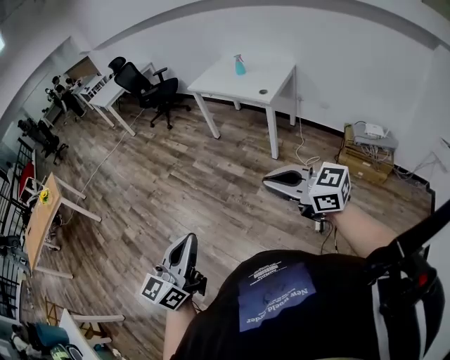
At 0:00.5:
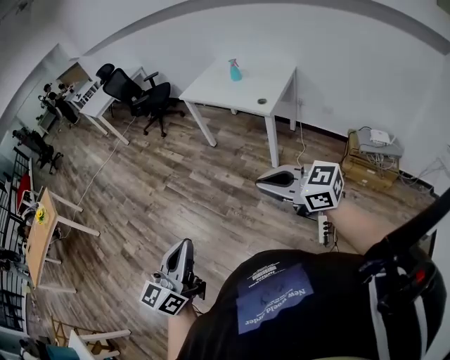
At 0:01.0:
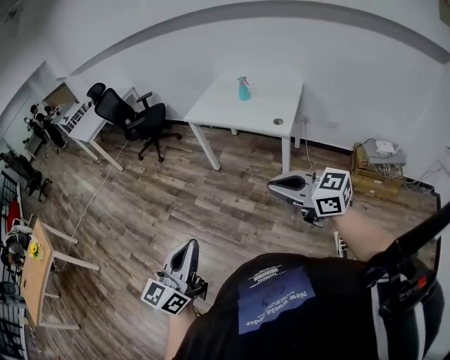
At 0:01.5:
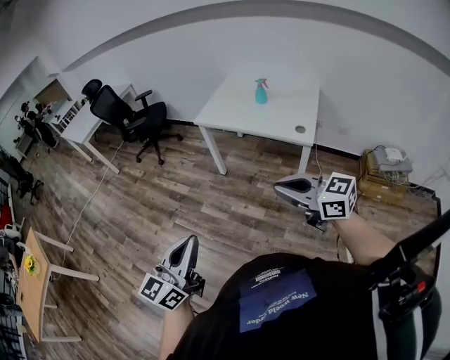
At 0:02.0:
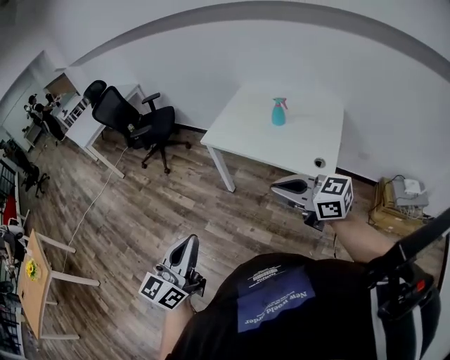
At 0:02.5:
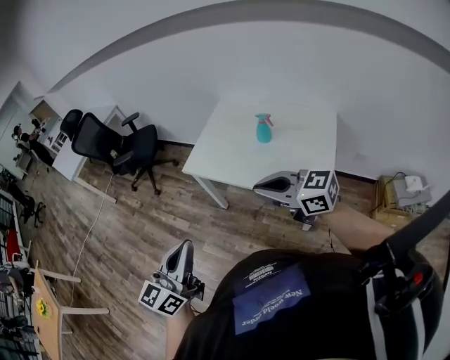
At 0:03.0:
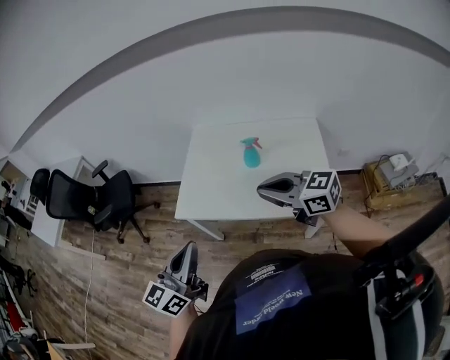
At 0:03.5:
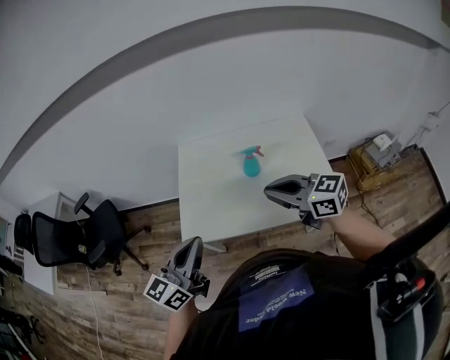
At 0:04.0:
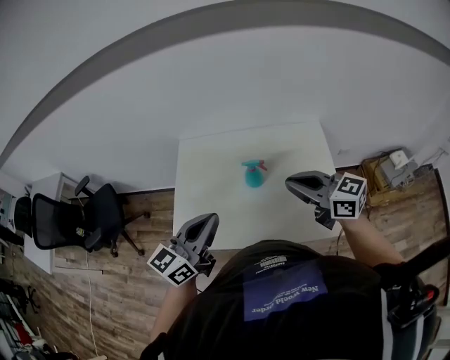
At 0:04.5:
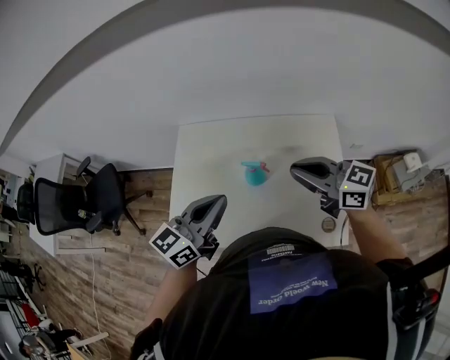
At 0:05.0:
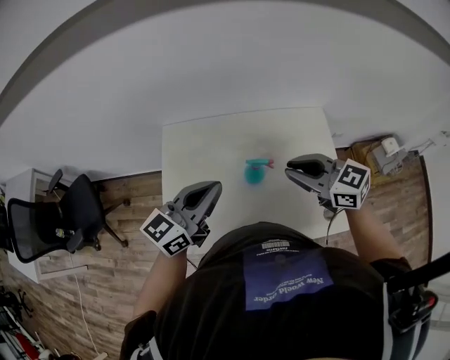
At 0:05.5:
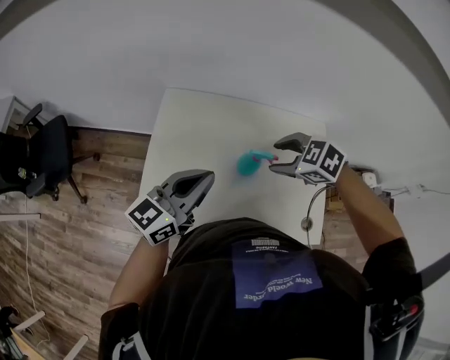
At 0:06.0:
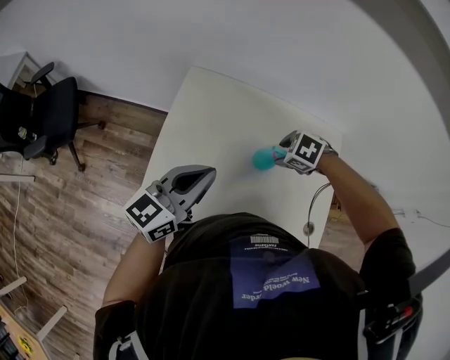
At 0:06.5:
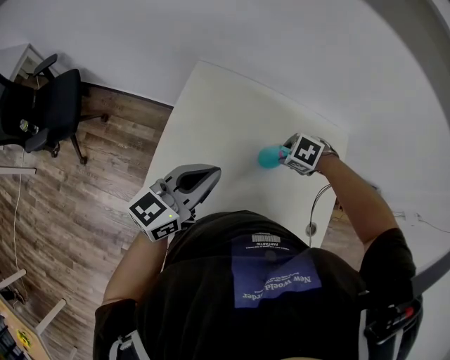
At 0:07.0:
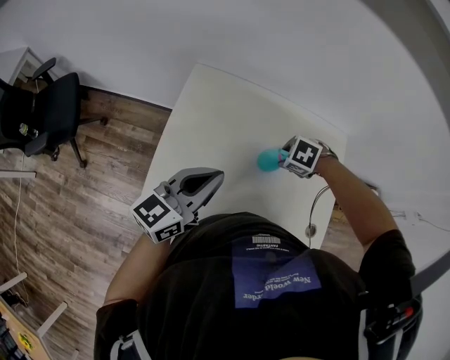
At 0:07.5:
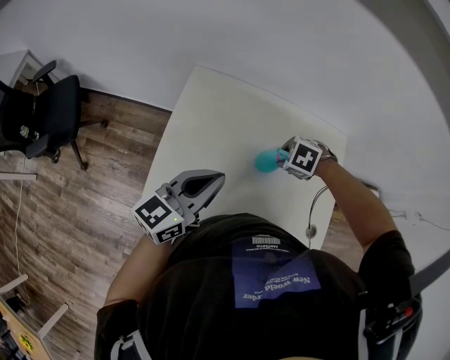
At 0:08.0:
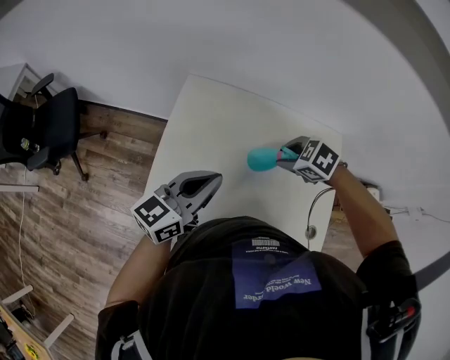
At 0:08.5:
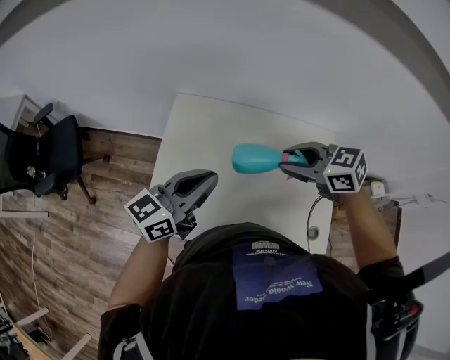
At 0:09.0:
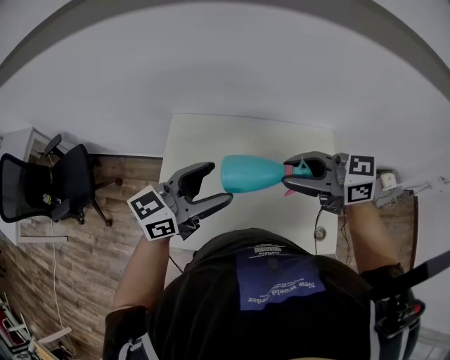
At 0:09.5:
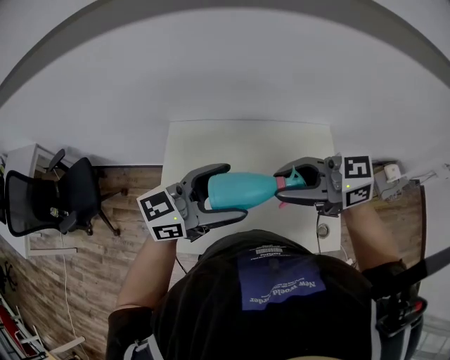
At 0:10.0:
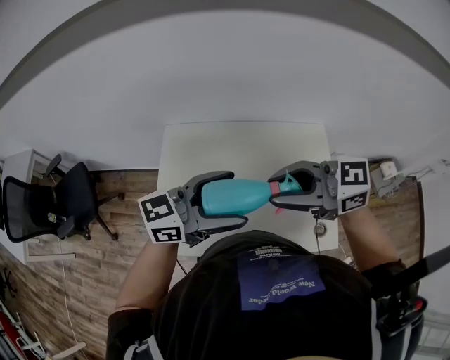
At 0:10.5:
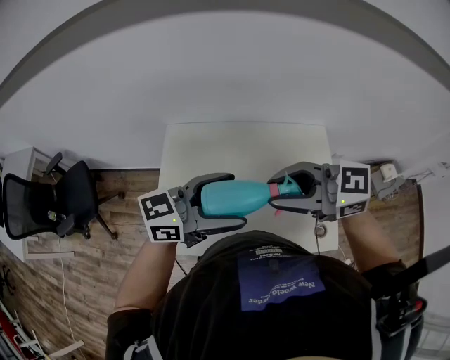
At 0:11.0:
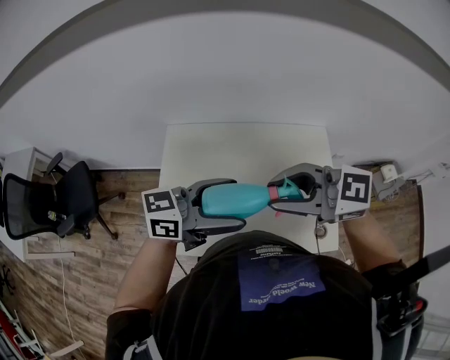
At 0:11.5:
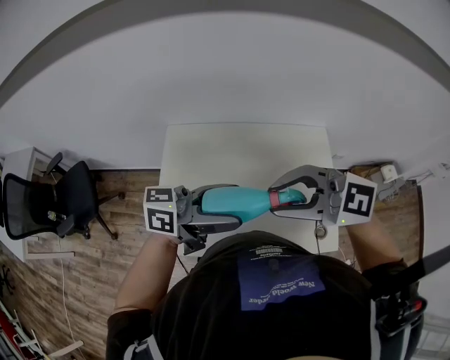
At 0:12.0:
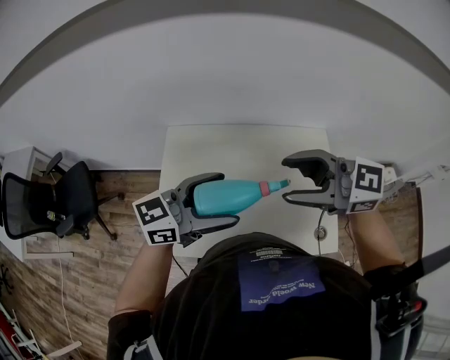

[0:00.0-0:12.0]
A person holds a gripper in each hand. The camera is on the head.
0:00.0 to 0:02.0: The pair of grippers is taken forward, about 70 cm.
0:02.0 to 0:04.0: The pair of grippers is taken approximately 50 cm. The right gripper swivels about 30 degrees; the left gripper rotates roughly 40 degrees.
0:04.0 to 0:06.0: The right gripper heads downward, covering approximately 25 cm, points its fingers approximately 80 degrees further downward, and opens. The left gripper moves about 15 cm.
0:06.0 to 0:08.0: There are only small adjustments of the grippers.
0:08.0 to 0:10.0: The right gripper goes some 25 cm upward, and points its fingers some 60 degrees further upward, while the left gripper ends up about 15 cm from where it was, rotates roughly 30 degrees, and opens.
0:10.0 to 0:12.0: The right gripper opens.

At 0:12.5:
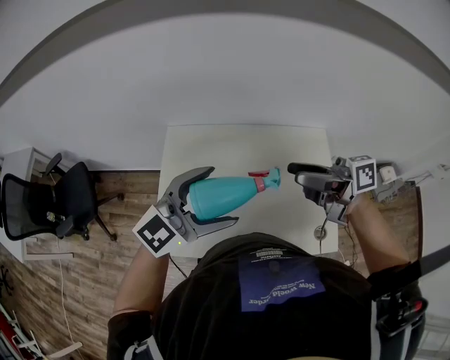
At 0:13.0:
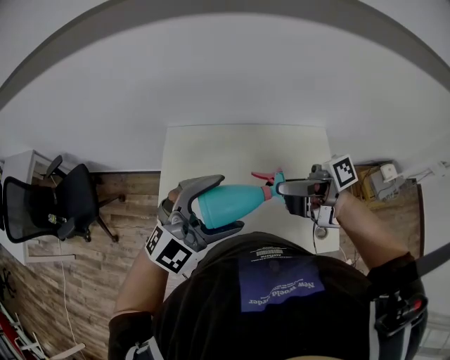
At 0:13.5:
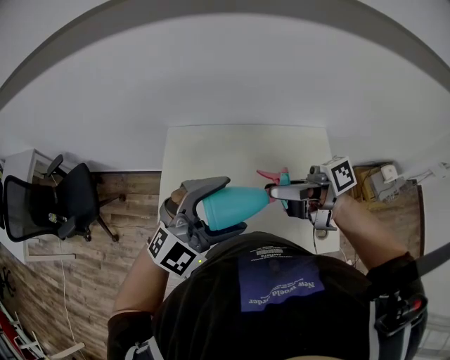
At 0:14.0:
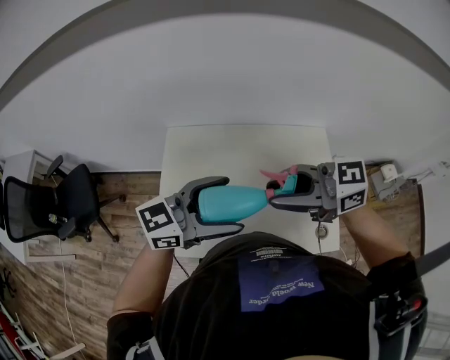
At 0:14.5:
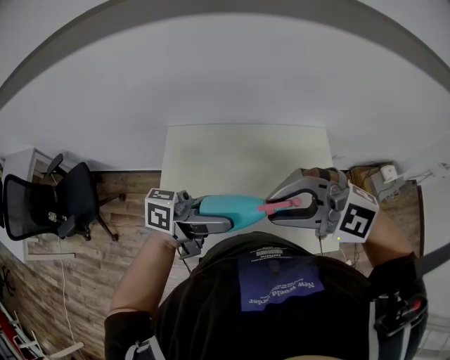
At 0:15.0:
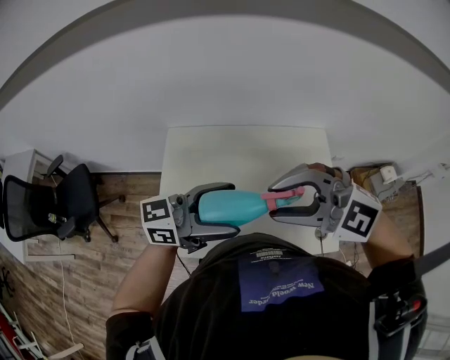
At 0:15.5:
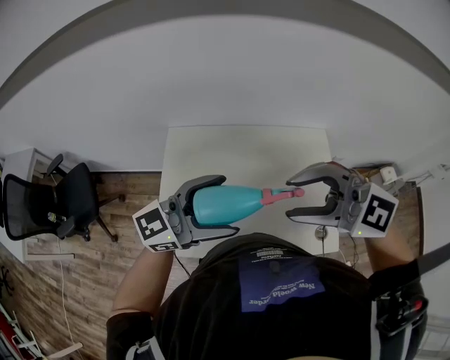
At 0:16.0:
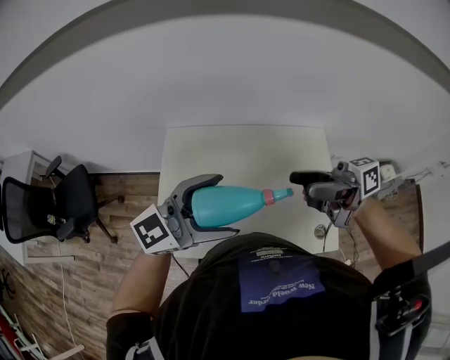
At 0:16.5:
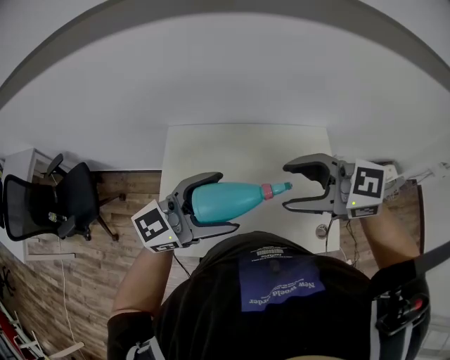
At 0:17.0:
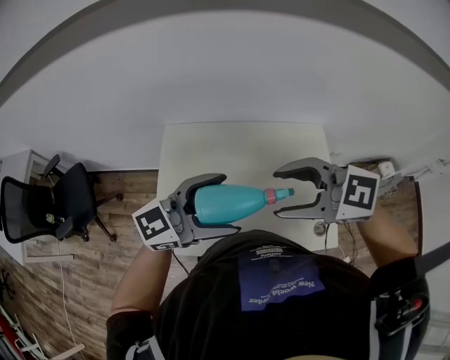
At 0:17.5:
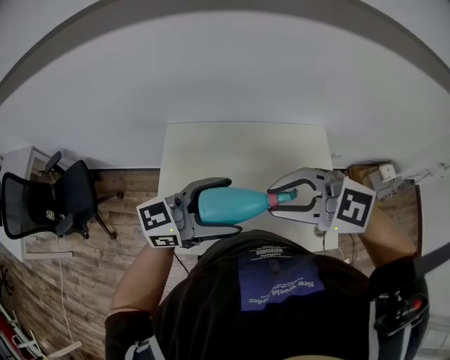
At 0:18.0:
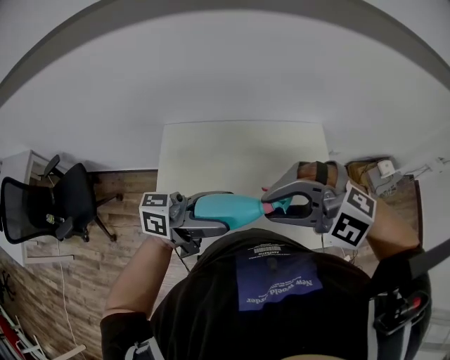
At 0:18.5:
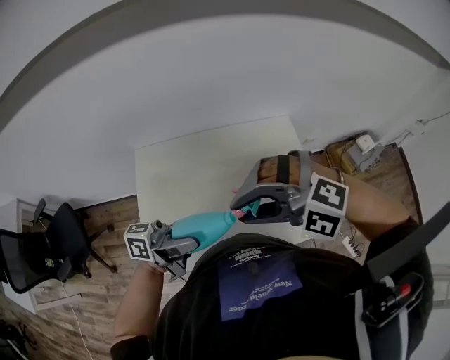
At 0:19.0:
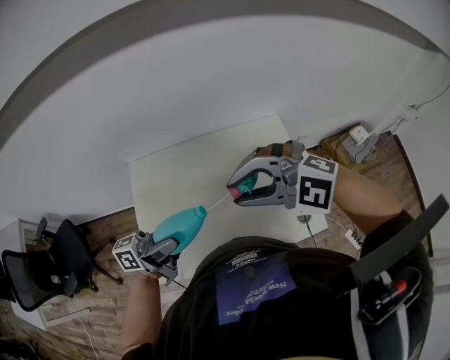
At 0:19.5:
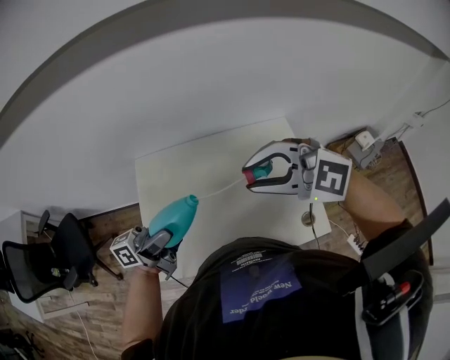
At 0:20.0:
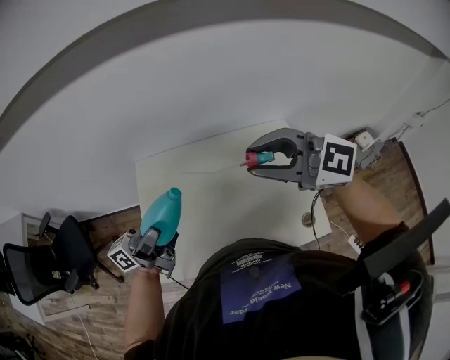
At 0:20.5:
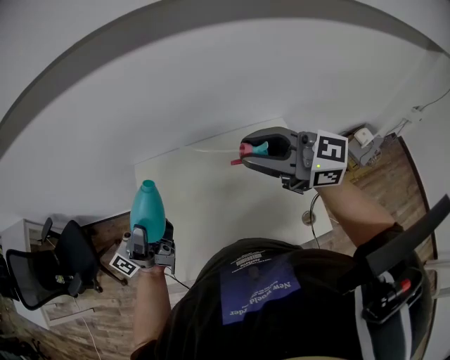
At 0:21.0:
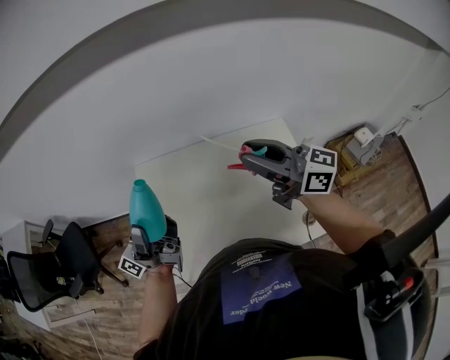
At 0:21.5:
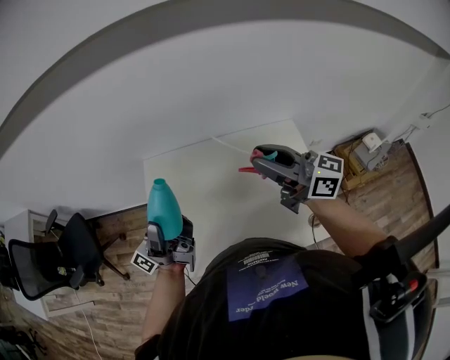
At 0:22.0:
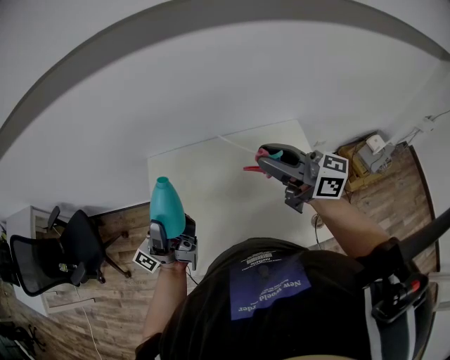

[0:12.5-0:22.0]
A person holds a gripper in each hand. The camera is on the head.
0:12.5 to 0:14.5: The left gripper rolls counterclockwise, seen from behind, by about 70 degrees. The right gripper changes place by roughly 15 cm, rotates around the line of its fingers by roughly 80 degrees, counterclockwise from behind, and closes its fingers.
0:14.5 to 0:16.5: The right gripper turns by some 40 degrees, and opens its fingers. The left gripper rotates around the line of its fingers by about 50 degrees, clockwise from behind.
0:16.5 to 0:18.0: The left gripper twists roughly 40 degrees counterclockwise, seen from behind; the right gripper ends up some 5 cm from where it was, twists about 50 degrees counterclockwise, seen from behind, and closes its fingers.
0:18.0 to 0:20.0: The right gripper shifts by roughly 15 cm, and swivels approximately 40 degrees. The left gripper changes place by roughly 10 cm, and rotates roughly 30 degrees.
0:20.0 to 0:22.0: The right gripper moves some 5 cm, and changes its angle by about 40 degrees; the left gripper changes its angle by some 30 degrees.

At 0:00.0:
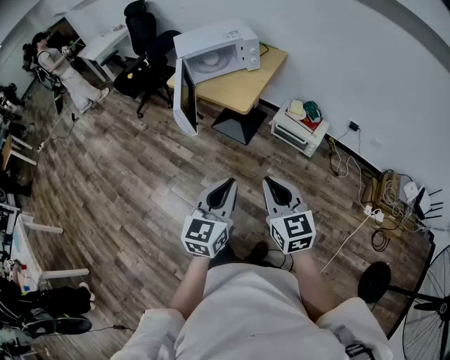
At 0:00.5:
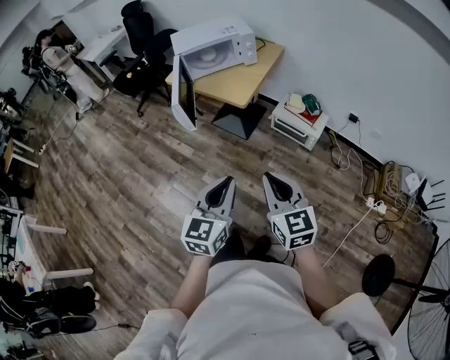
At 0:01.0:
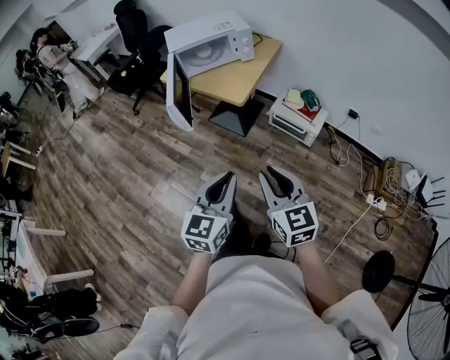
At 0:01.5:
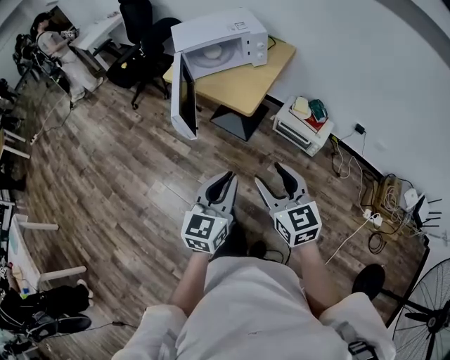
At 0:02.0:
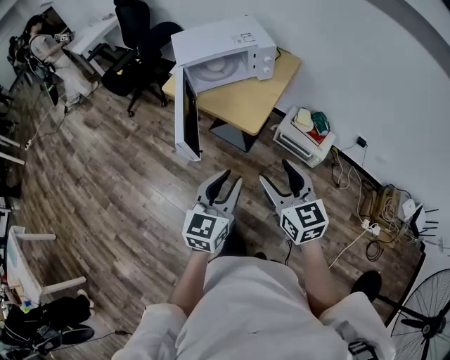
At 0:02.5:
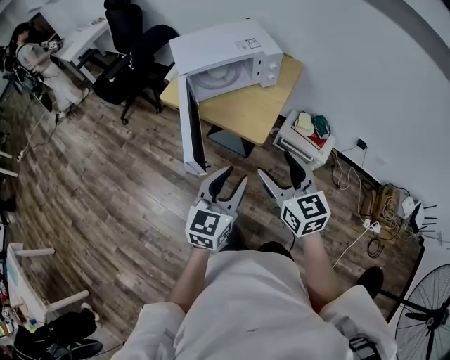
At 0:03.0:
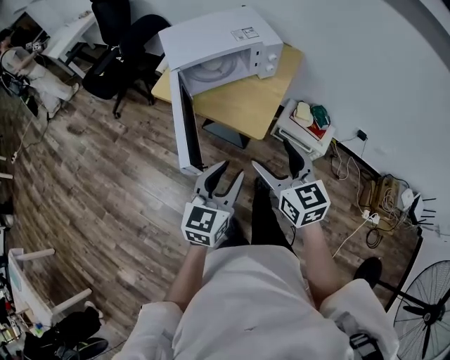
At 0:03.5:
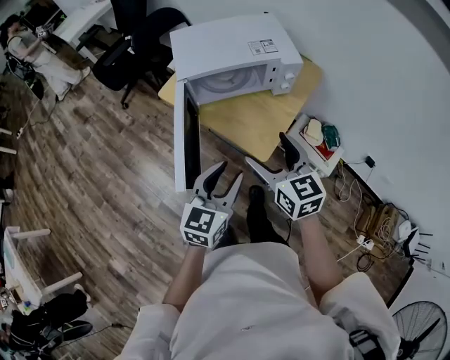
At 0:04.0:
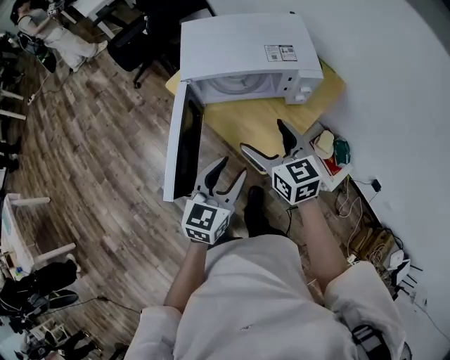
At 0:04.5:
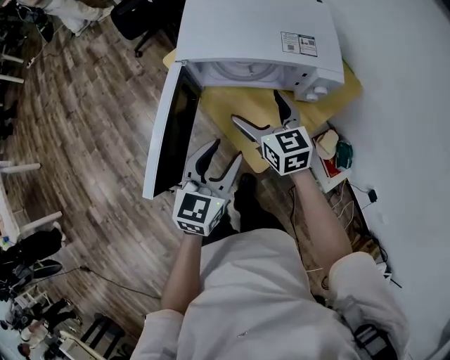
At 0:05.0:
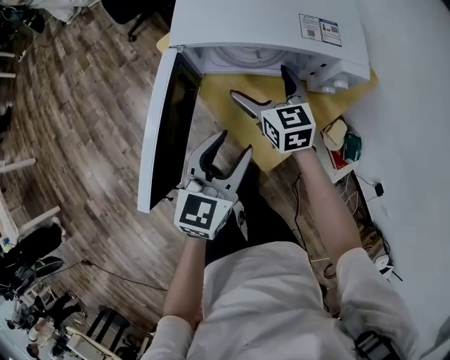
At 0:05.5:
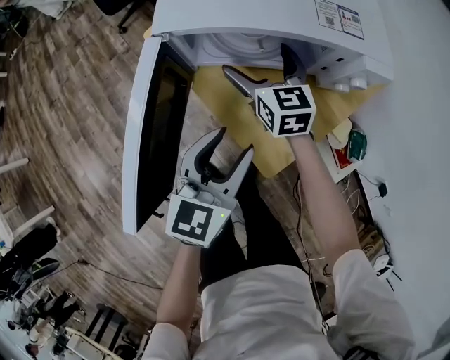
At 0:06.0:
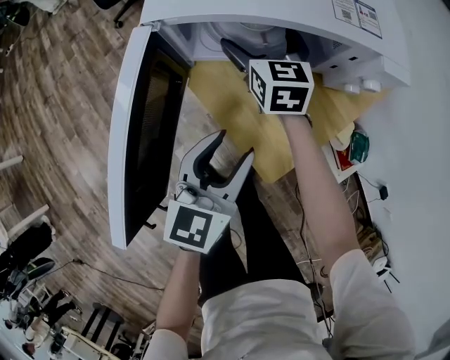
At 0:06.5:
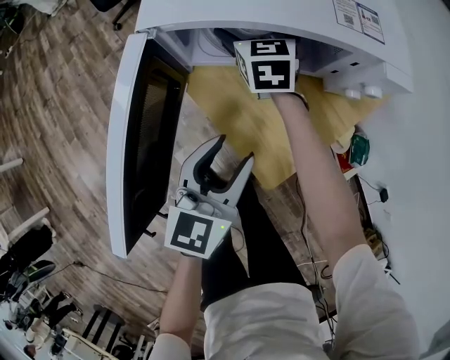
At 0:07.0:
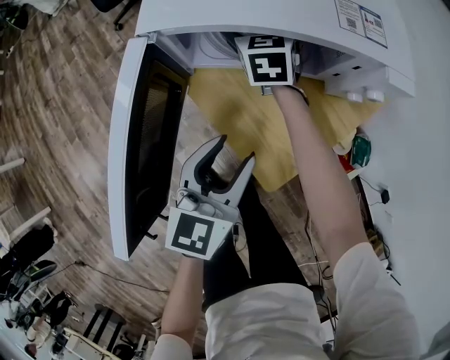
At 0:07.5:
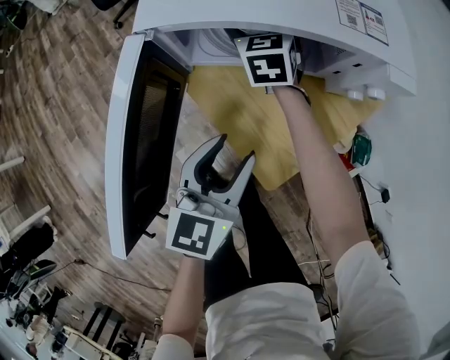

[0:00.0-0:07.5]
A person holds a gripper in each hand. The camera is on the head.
0:00.0 to 0:02.0: Both grippers move forward, about 20 cm. The left gripper opens up. Meanwhile the right gripper opens up.
0:02.0 to 0:04.0: Both grippers travel together forward, some 35 cm.
0:04.0 to 0:05.5: The left gripper travels downward and forward by approximately 15 cm; the right gripper is displaced forward and downward by approximately 25 cm.
0:05.5 to 0:07.5: The right gripper travels forward by about 10 cm, and swivels approximately 20 degrees.
